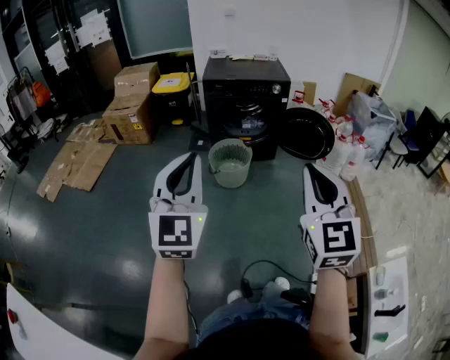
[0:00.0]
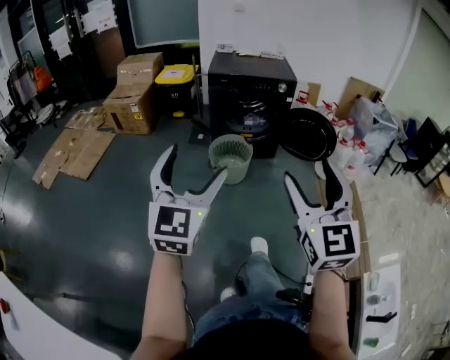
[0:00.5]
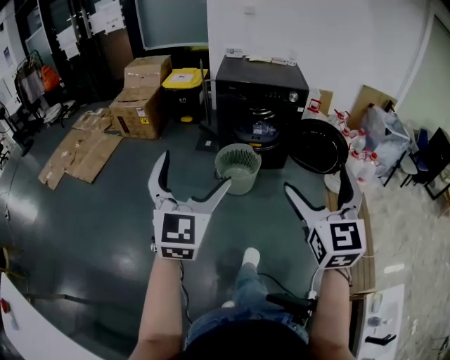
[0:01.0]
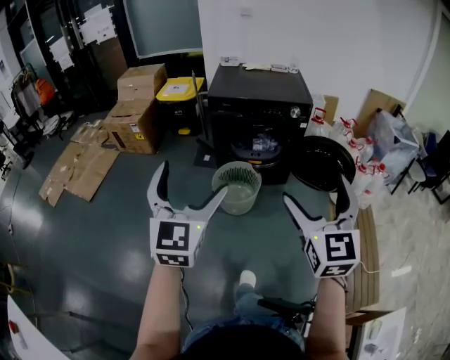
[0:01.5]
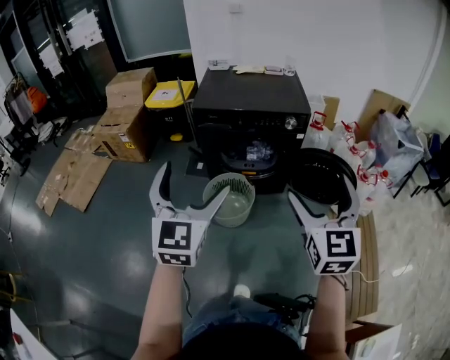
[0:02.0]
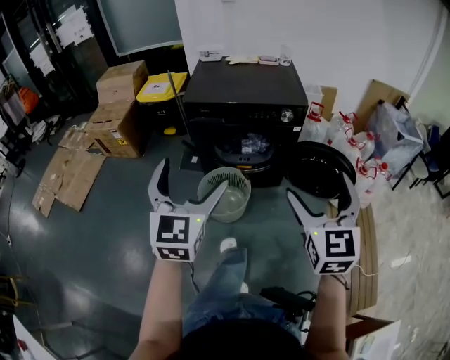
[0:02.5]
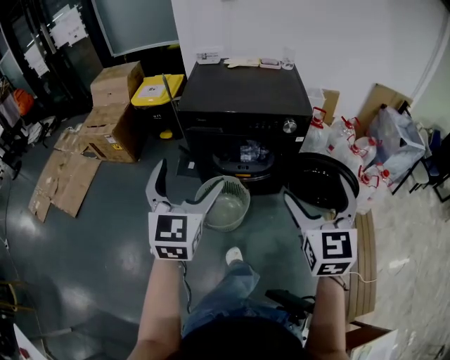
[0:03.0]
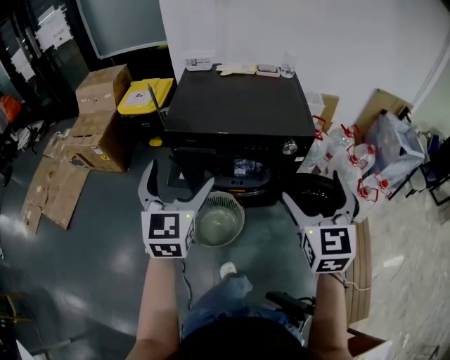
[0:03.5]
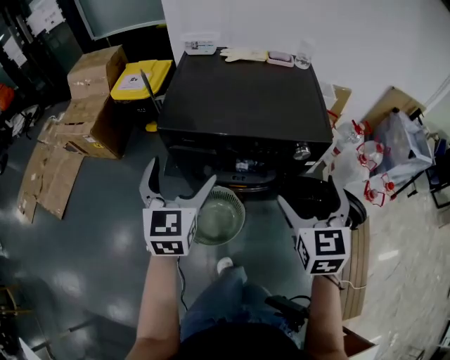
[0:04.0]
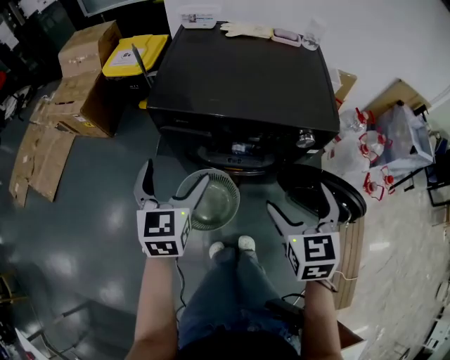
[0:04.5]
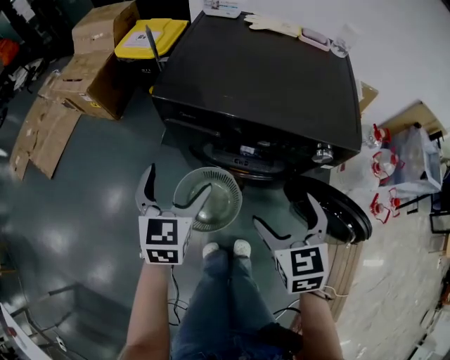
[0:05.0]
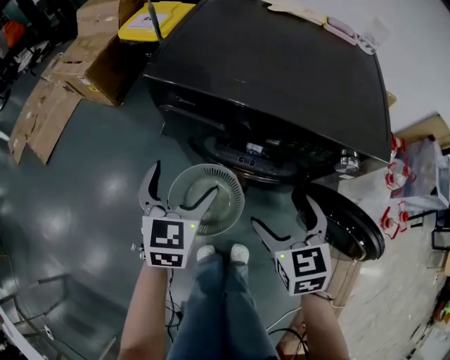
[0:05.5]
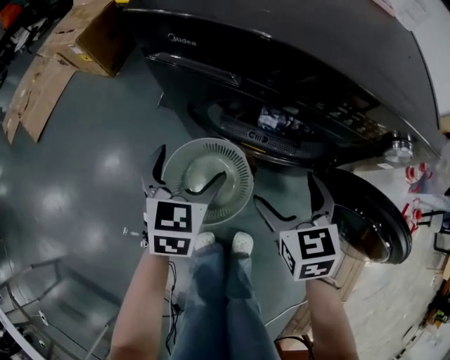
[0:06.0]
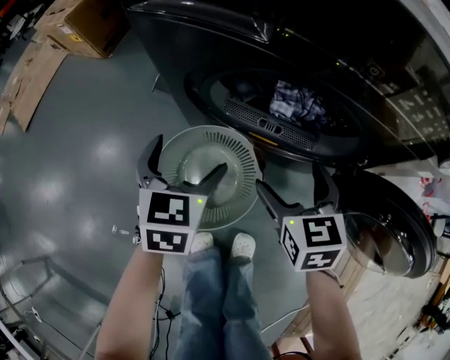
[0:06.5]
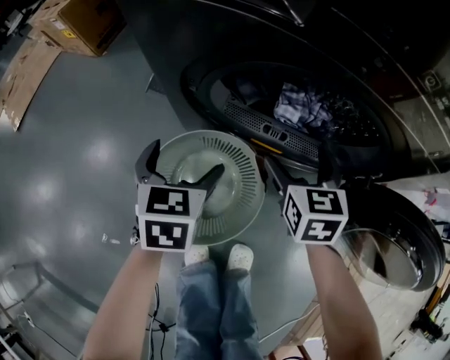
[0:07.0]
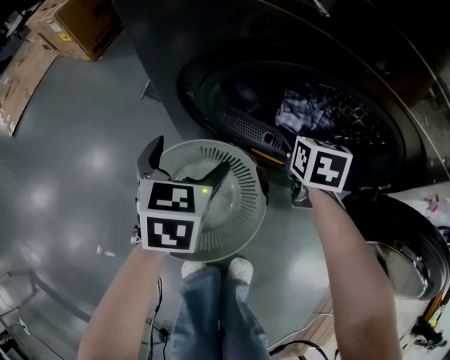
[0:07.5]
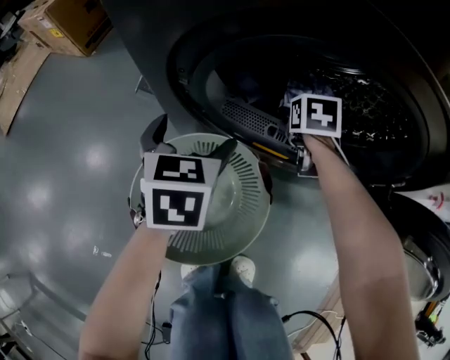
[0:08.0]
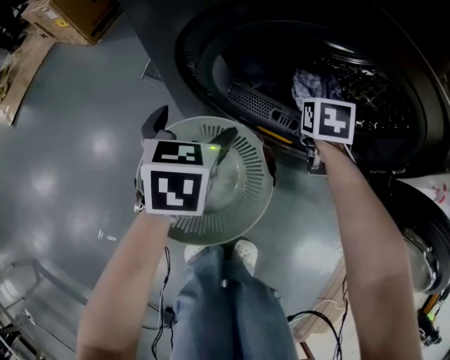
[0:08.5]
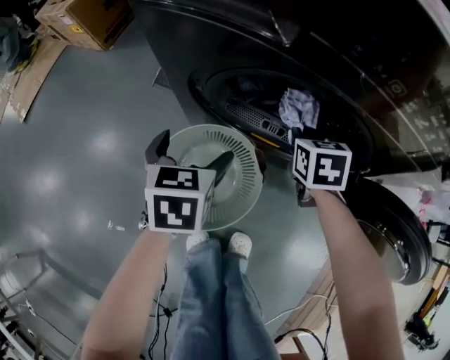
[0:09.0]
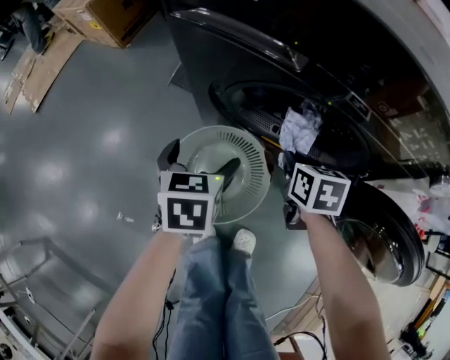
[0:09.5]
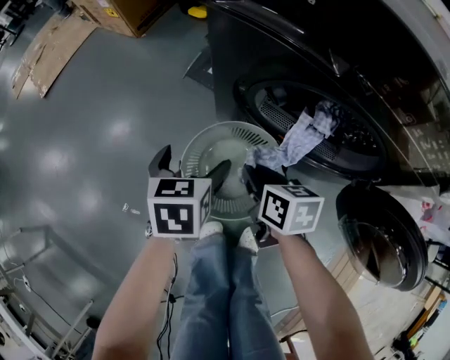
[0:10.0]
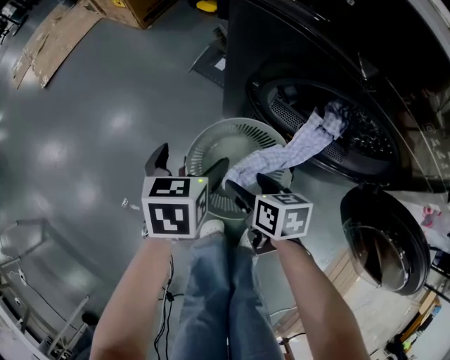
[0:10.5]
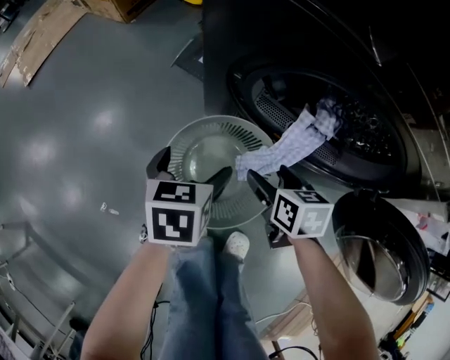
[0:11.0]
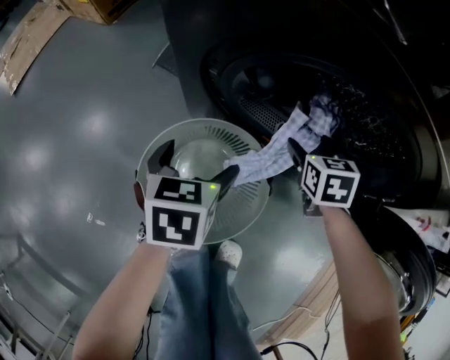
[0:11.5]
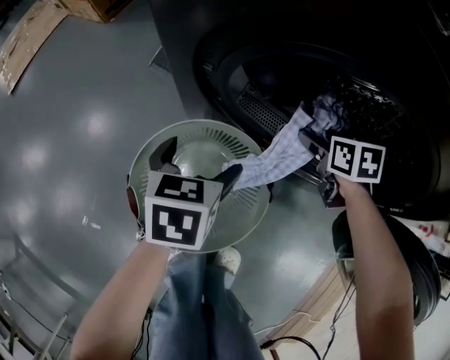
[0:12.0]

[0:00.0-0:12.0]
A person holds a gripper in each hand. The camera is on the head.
0:00.0 to 0:02.0: The pair of grippers is taken forward, about 40 cm. The right gripper opens up; the left gripper opens its fingers.
0:02.0 to 0:04.0: Both grippers move forward, approximately 35 cm.
0:04.0 to 0:06.0: Both grippers move downward, approximately 35 cm. The left gripper turns by about 20 degrees; the right gripper rotates about 30 degrees.
0:06.0 to 0:08.0: The left gripper shifts about 25 cm downward and forward. Meanwhile the right gripper goes some 40 cm downward and forward, and turns by about 30 degrees.
0:08.0 to 0:10.0: The left gripper ends up about 20 cm from where it was; the right gripper ends up about 35 cm from where it was, swivels some 40 degrees, and closes.
0:10.0 to 0:12.0: The left gripper moves downward, roughly 15 cm; the right gripper ends up approximately 30 cm from where it was, turns by some 20 degrees, and opens its fingers.

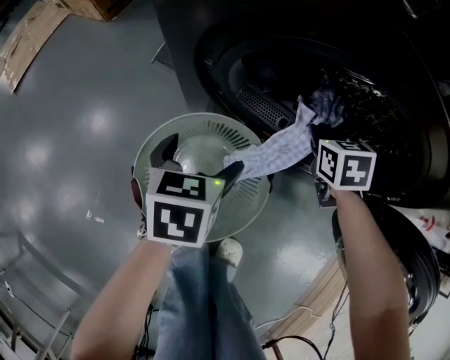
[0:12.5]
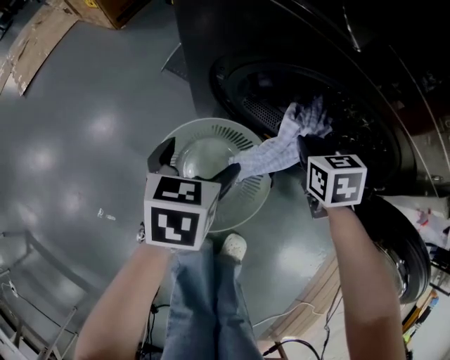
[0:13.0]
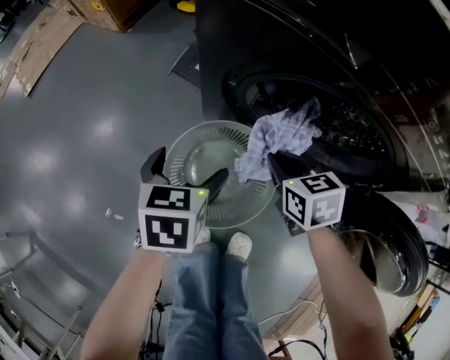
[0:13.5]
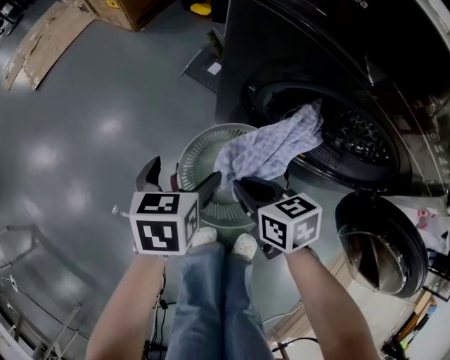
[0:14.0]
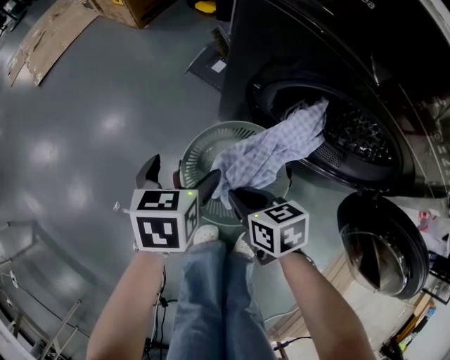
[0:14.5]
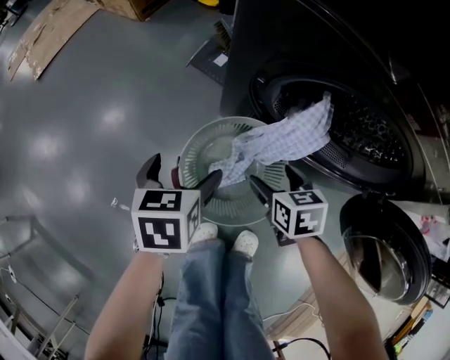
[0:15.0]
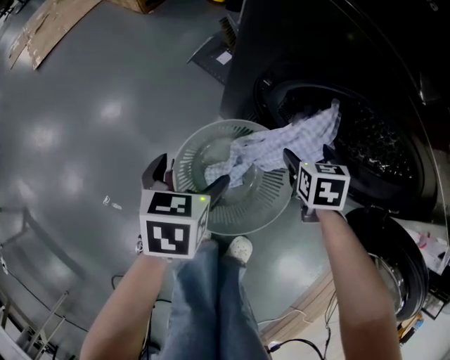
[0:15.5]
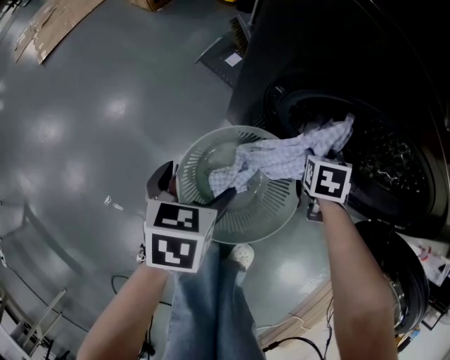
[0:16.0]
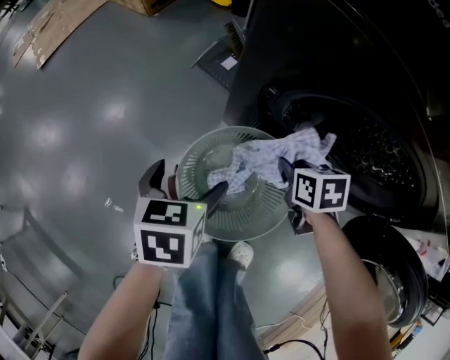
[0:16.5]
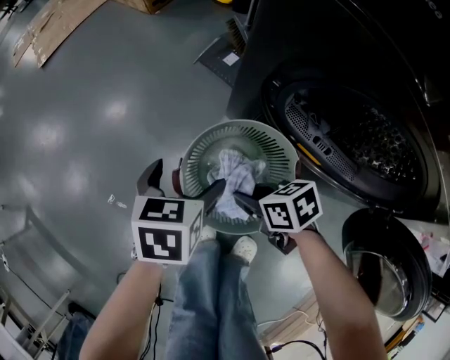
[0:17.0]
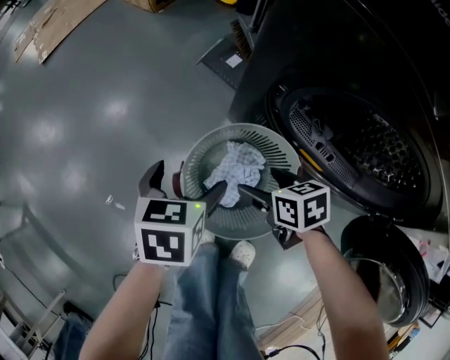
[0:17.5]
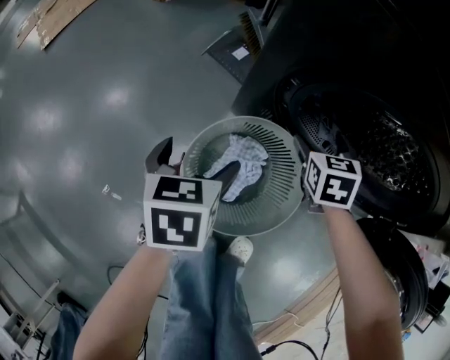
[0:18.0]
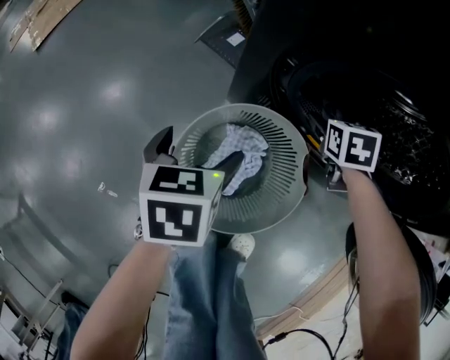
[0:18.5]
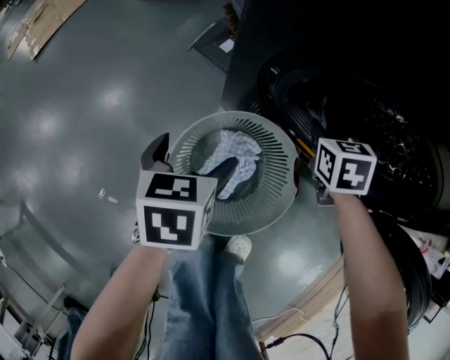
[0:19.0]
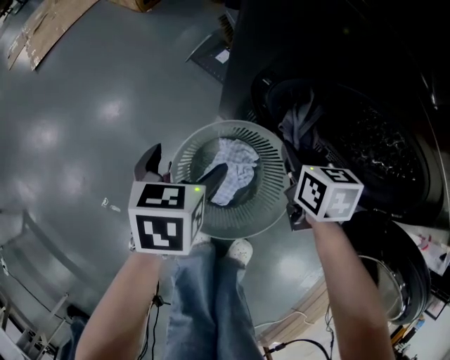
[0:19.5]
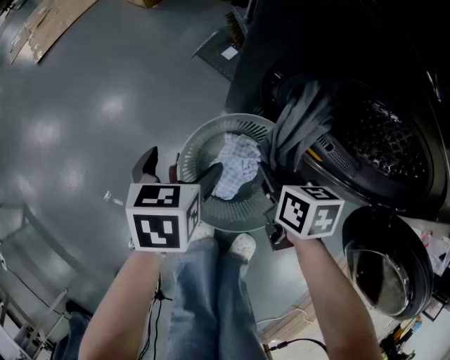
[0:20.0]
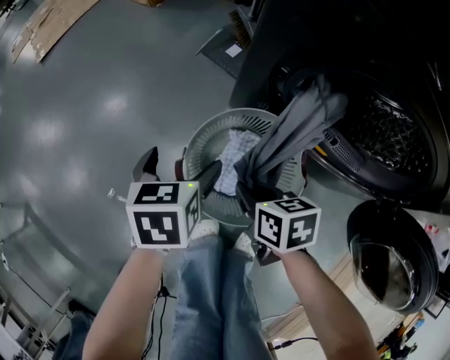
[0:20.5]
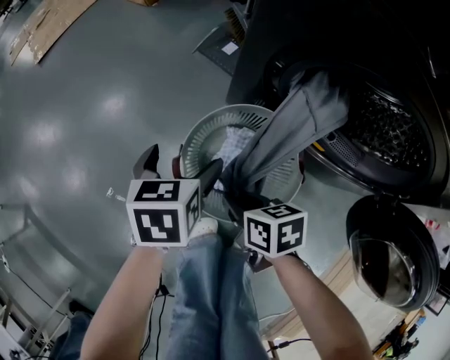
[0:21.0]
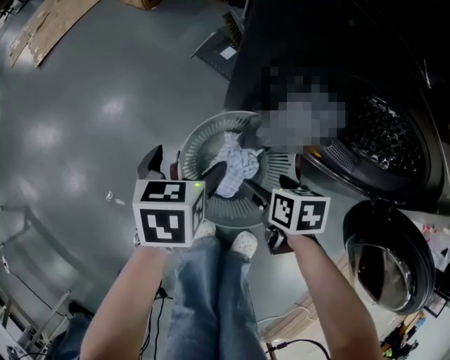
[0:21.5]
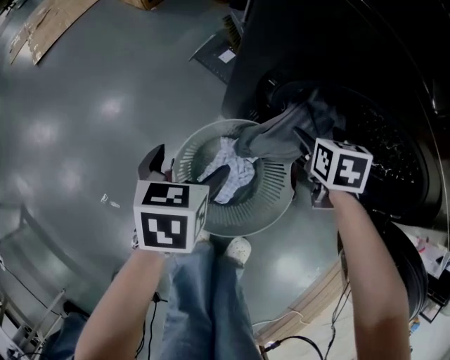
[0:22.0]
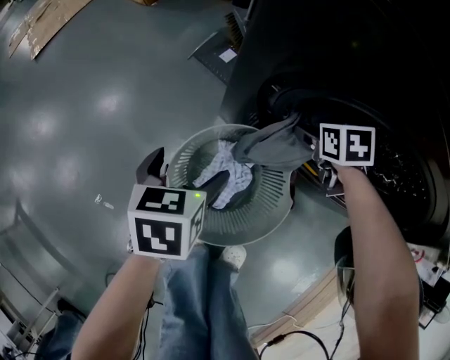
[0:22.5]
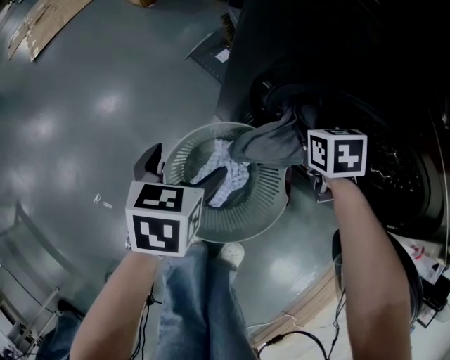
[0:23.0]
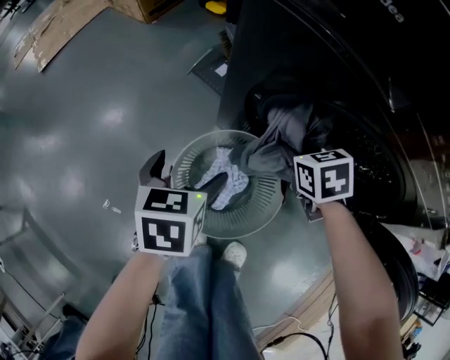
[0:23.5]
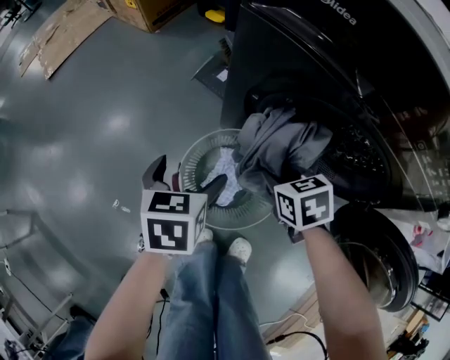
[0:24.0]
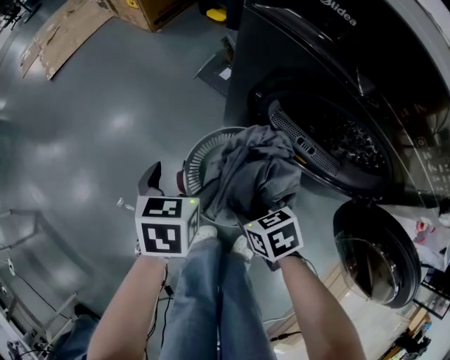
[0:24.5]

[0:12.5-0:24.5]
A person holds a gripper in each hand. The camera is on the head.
0:12.5 to 0:14.5: The right gripper changes place by roughly 35 cm, and swivels roughly 40 degrees. Meanwhile the left gripper ends up some 20 cm from where it was.
0:14.5 to 0:16.5: The right gripper opens and closes again; the left gripper ends up about 5 cm from where it was.
0:16.5 to 0:18.5: The right gripper ends up some 15 cm from where it was, swivels approximately 30 degrees, and opens up.
0:18.5 to 0:20.5: The right gripper shifts by approximately 30 cm, turns by approximately 40 degrees, and closes. The left gripper shifts by approximately 5 cm.
0:20.5 to 0:22.5: The right gripper moves some 30 cm, changes its angle by roughly 30 degrees, and opens. The left gripper moves about 5 cm.
0:22.5 to 0:24.5: The left gripper shifts some 10 cm upward, while the right gripper changes place by some 35 cm, changes its angle by roughly 20 degrees, and closes up.

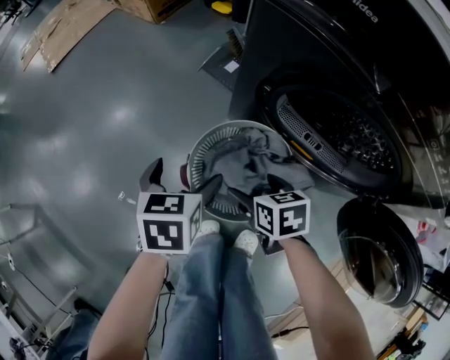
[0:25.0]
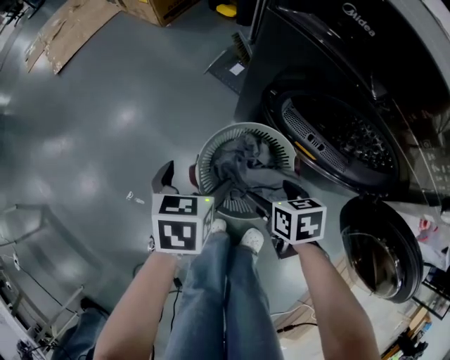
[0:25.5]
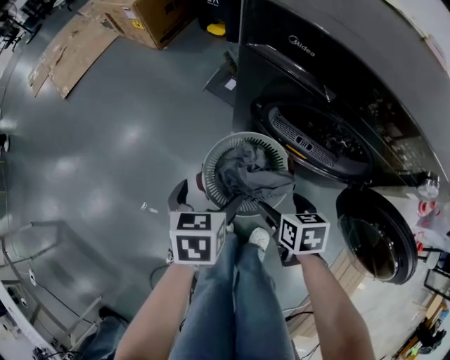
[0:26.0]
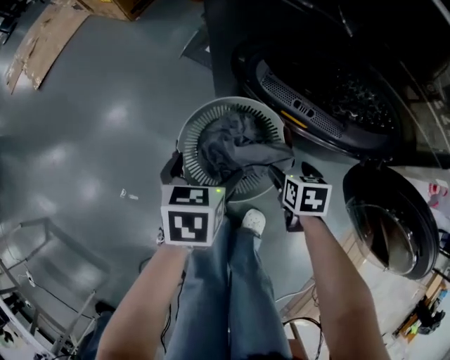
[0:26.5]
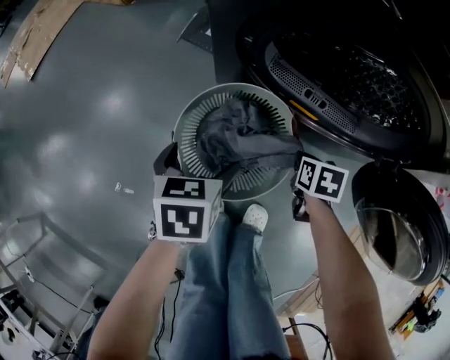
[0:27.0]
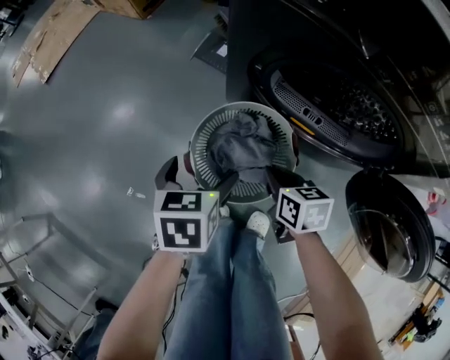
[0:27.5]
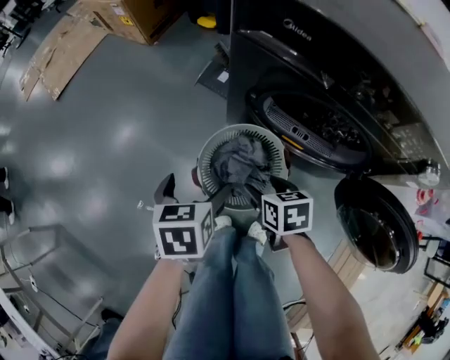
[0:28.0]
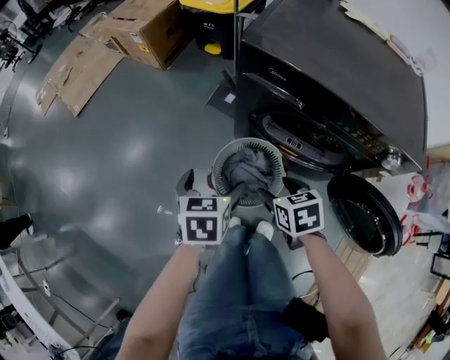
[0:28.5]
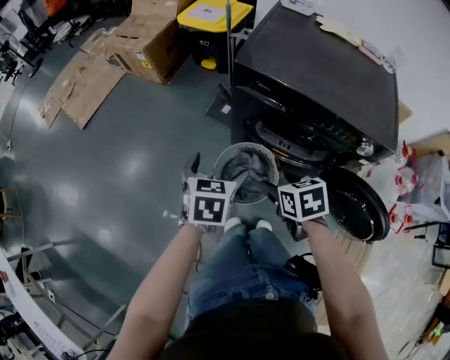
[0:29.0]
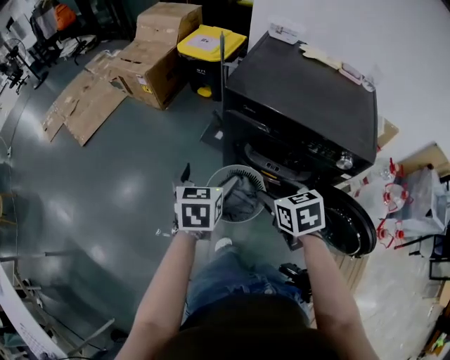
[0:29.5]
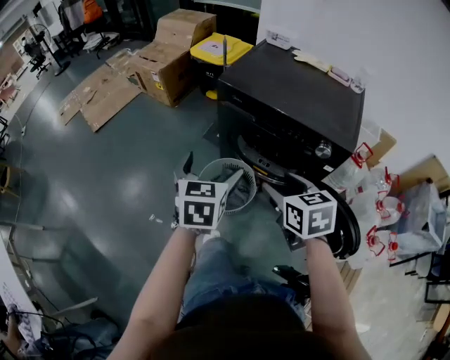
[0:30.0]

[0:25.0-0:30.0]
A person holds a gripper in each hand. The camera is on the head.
0:25.0 to 0:27.5: The left gripper moves up and down over some 15 cm, changing direction 2 times; the right gripper swings up and down, approximately 20 cm each way, with 2 reversals, and closes up.
0:27.5 to 0:30.0: The two grippers go some 50 cm upward. The right gripper swivels about 30 degrees, and opens up; the left gripper turns by roughly 30 degrees.
